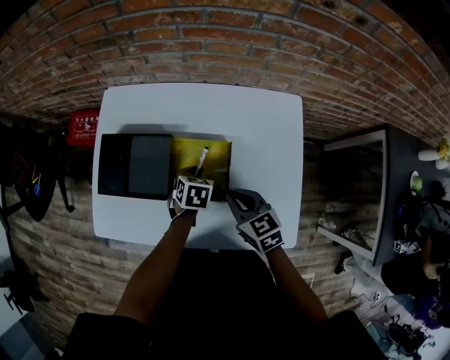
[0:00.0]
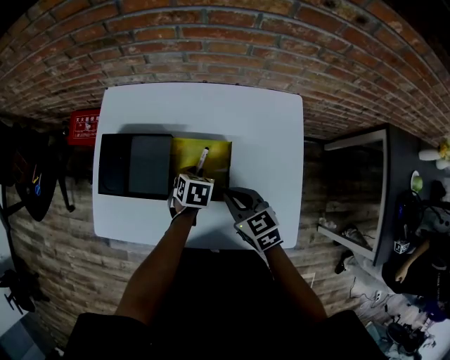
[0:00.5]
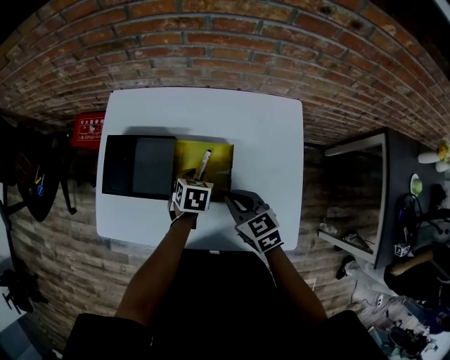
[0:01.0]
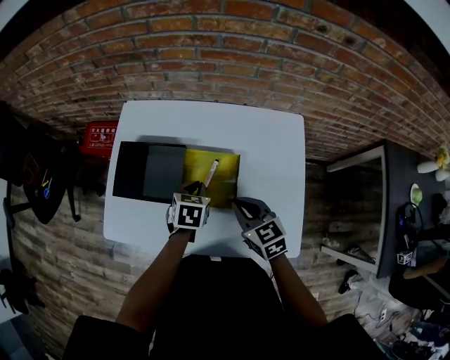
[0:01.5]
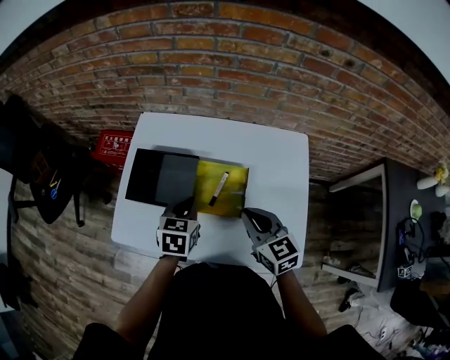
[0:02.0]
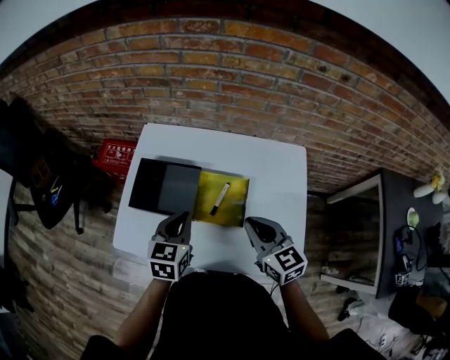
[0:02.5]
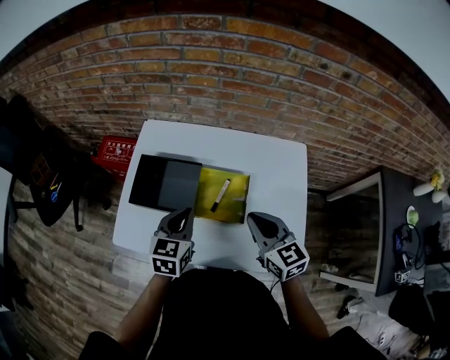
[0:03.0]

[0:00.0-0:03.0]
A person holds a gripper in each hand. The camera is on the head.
0:00.0 to 0:01.5: The left gripper moves upward, approximately 5 cm.
0:01.5 to 0:03.0: The left gripper heads upward and to the left, covering some 15 cm, and changes its angle by approximately 20 degrees; the right gripper is displaced upward by about 10 cm.

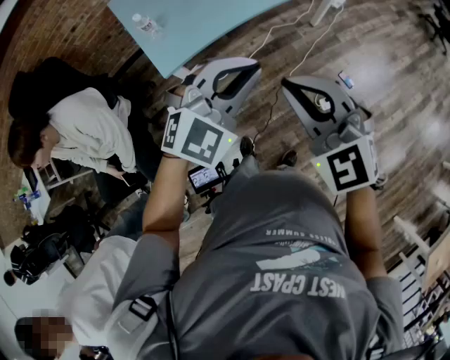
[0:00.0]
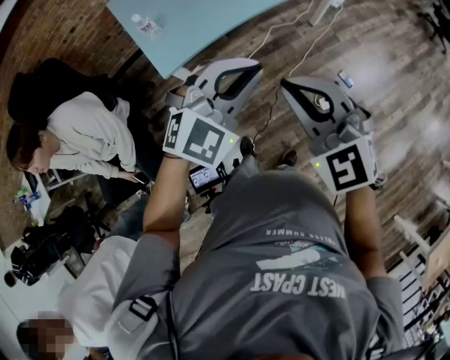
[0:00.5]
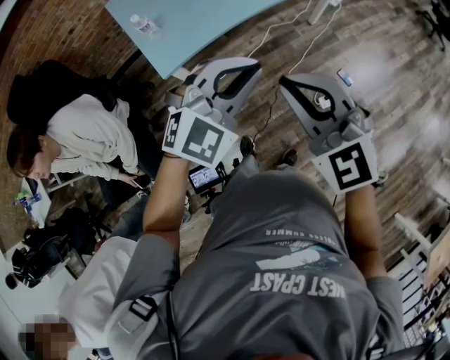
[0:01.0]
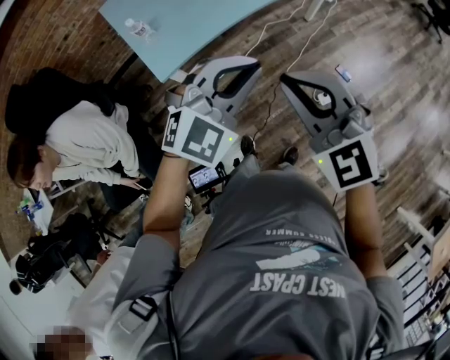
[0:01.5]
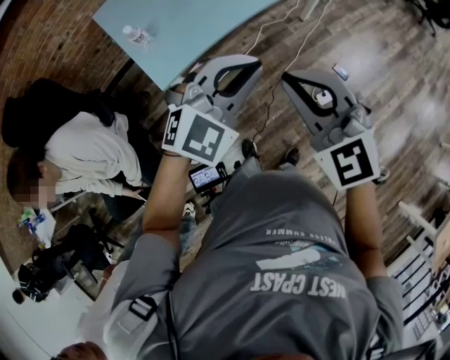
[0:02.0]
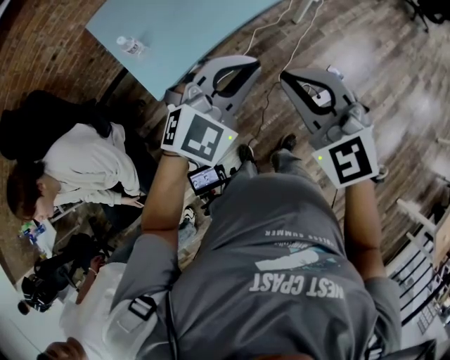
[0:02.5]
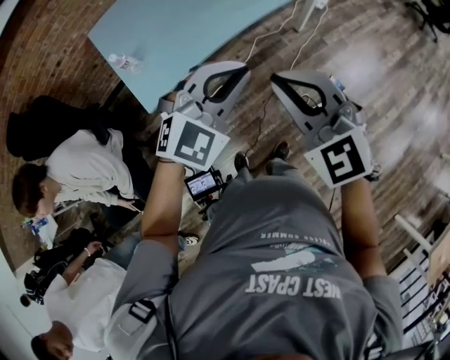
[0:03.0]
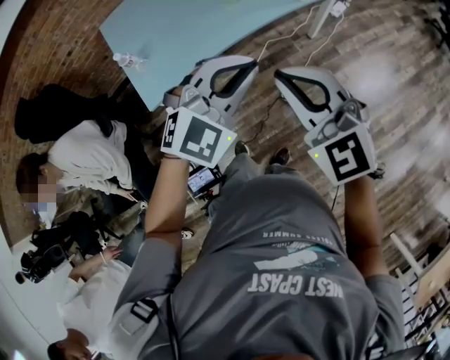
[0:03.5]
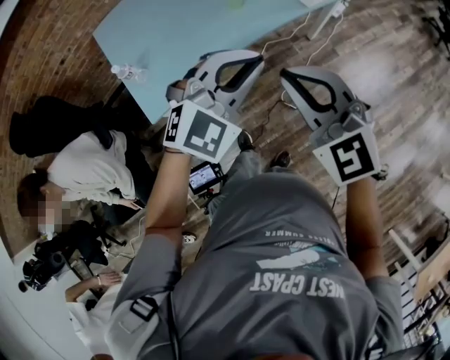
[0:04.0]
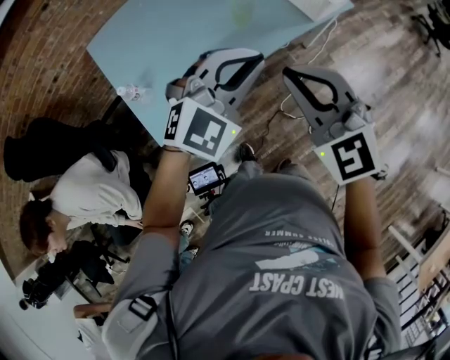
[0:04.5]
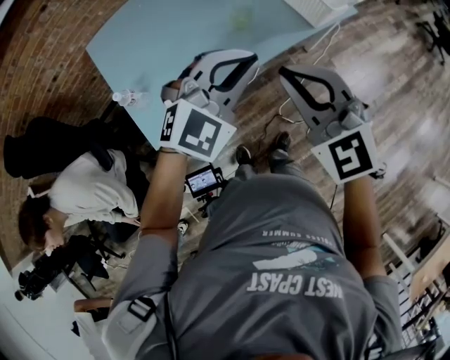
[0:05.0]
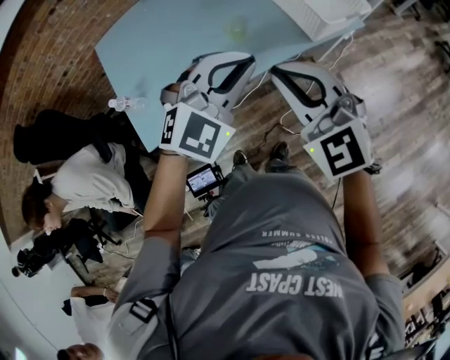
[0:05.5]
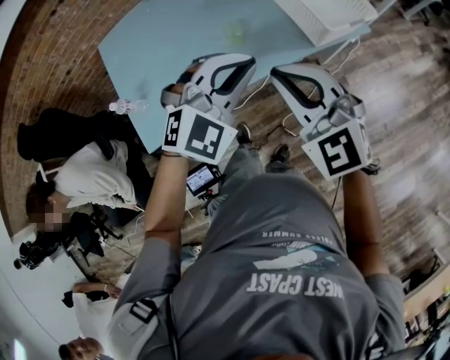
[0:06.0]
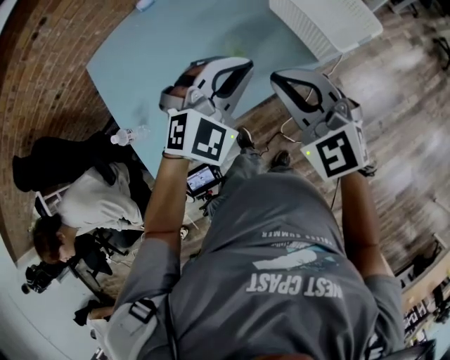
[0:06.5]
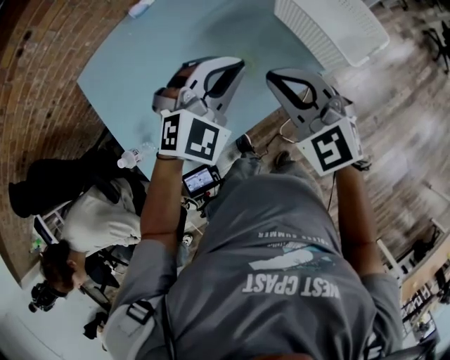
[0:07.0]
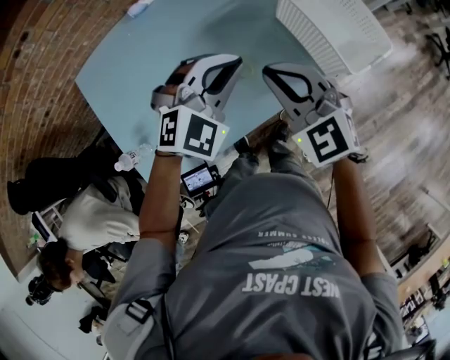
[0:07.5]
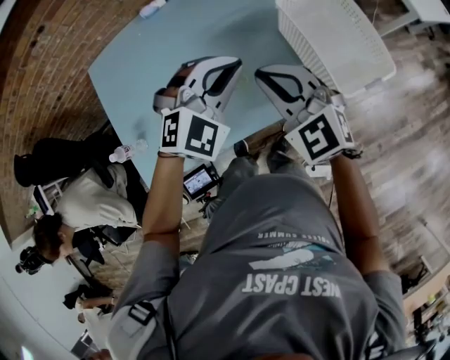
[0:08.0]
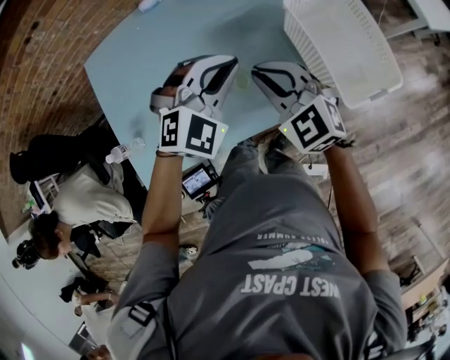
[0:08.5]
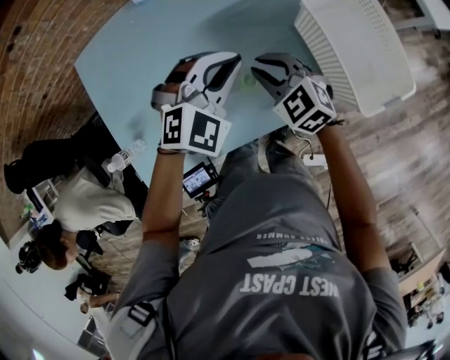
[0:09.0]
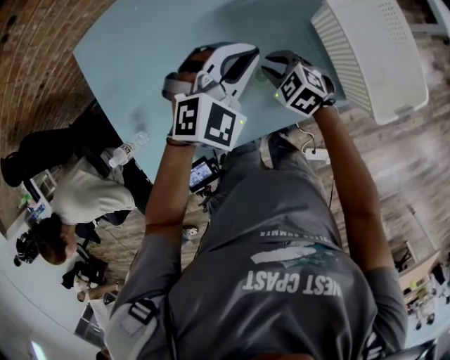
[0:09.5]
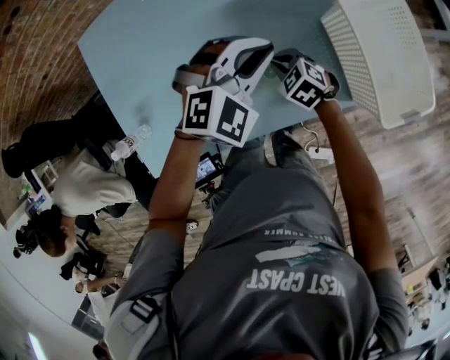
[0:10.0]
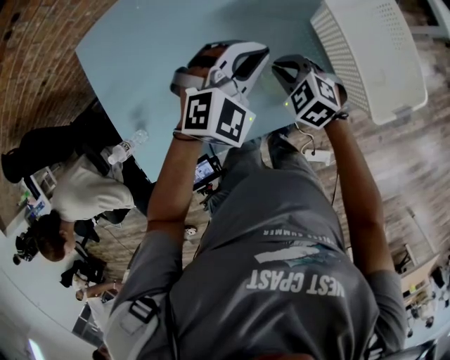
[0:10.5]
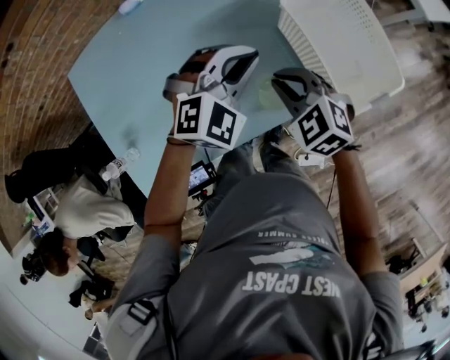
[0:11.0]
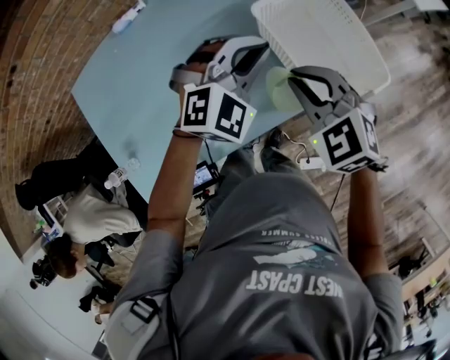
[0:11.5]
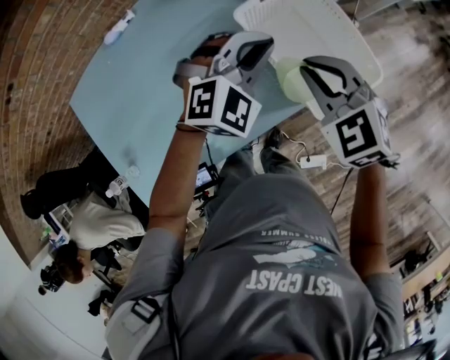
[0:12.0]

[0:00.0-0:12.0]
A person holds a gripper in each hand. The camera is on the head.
0:00.0 to 0:02.0: The grippers stay close to where they were, moving slightly.
0:02.0 to 0:04.0: The two grippers go some 20 cm forward and to the right.
0:04.0 to 0:06.0: The two grippers go about 20 cm forward.
0:06.0 to 0:08.0: Both grippers move forward, roughly 20 cm.
0:08.0 to 0:10.0: The right gripper heads downward, covering approximately 30 cm, and tilts its fingers roughly 40 degrees downward, while the left gripper is displaced downward and forward by approximately 10 cm.
0:10.0 to 0:12.0: The right gripper shifts approximately 35 cm upward and to the right, and turns by approximately 30 degrees. Meanwhile the left gripper is displaced to the right by some 20 cm.

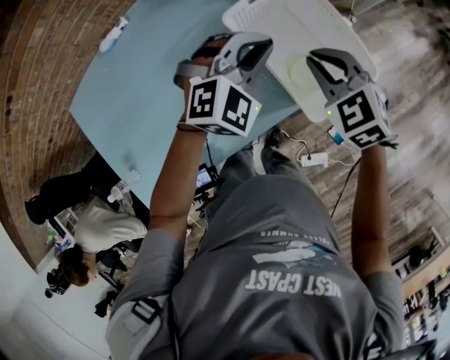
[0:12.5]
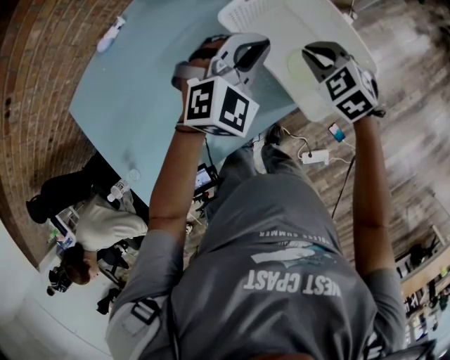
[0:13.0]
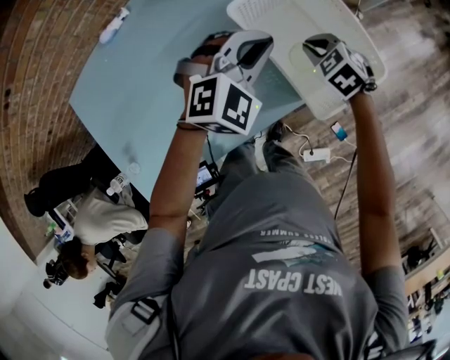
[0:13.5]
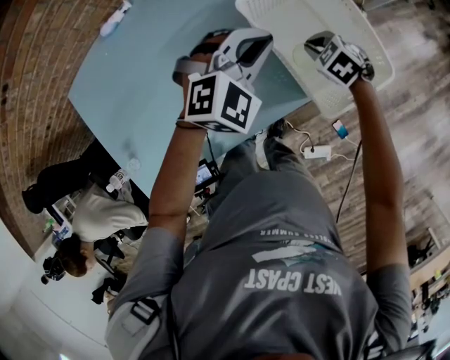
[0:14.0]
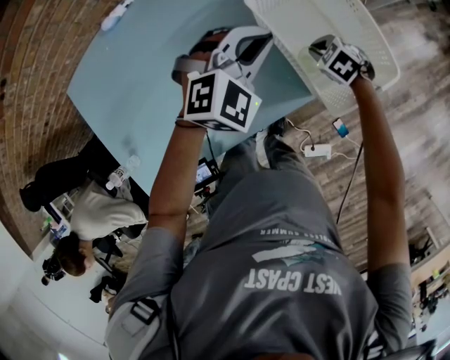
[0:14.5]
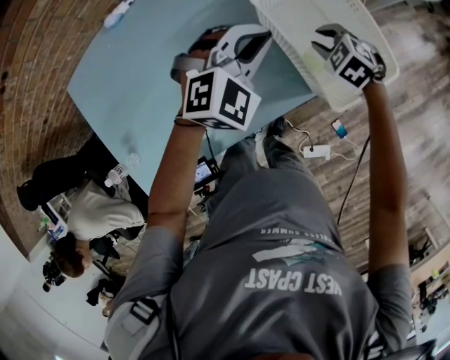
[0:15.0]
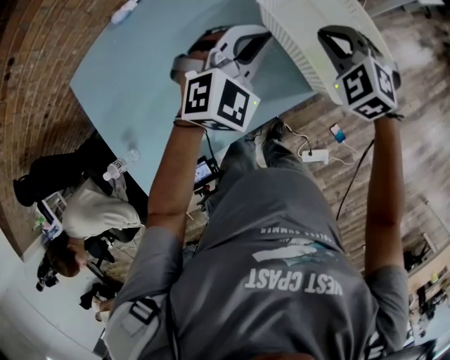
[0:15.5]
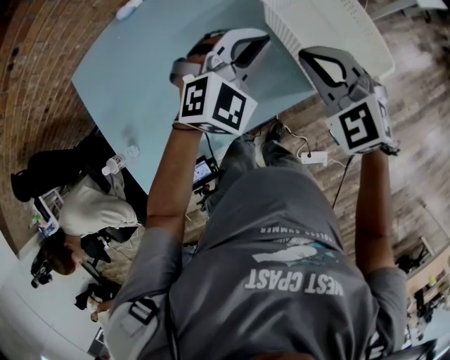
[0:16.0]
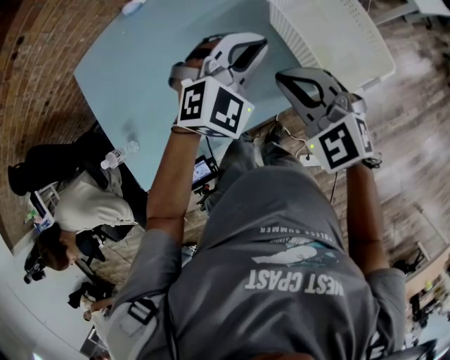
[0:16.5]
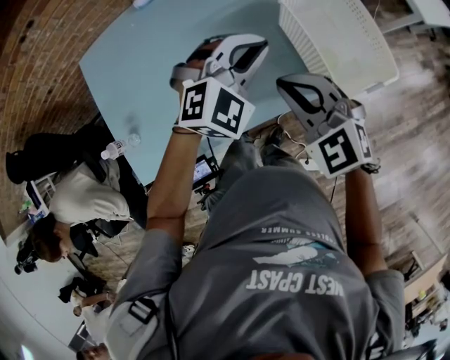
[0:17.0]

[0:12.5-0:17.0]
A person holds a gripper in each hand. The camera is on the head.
0:12.5 to 0:14.5: The left gripper moves to the left, approximately 5 cm. Meanwhile the right gripper is displaced downward by roughly 20 cm, and swivels some 30 degrees.
0:14.5 to 0:17.0: The left gripper is displaced backward, to the left and upward by approximately 10 cm, while the right gripper heads upward, to the left and backward, covering roughly 35 cm, and points its fingers roughly 40 degrees further upward.

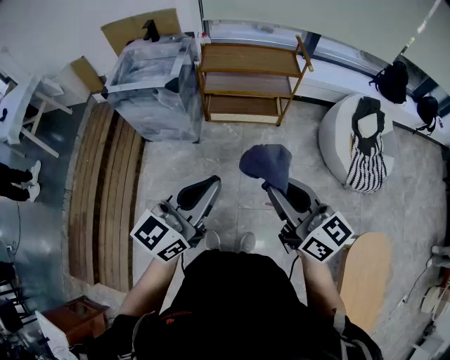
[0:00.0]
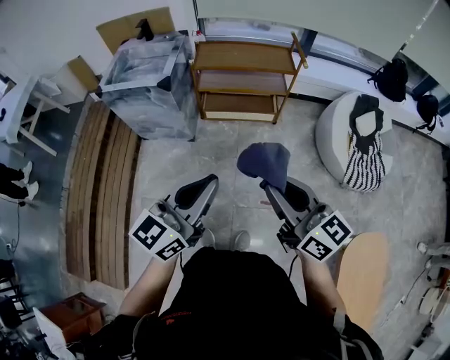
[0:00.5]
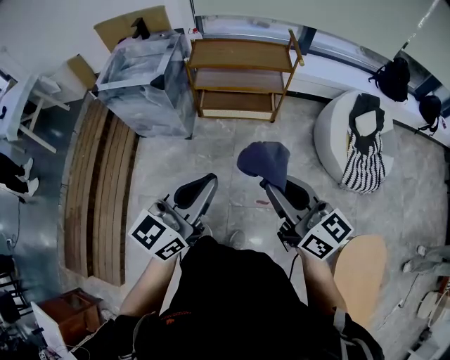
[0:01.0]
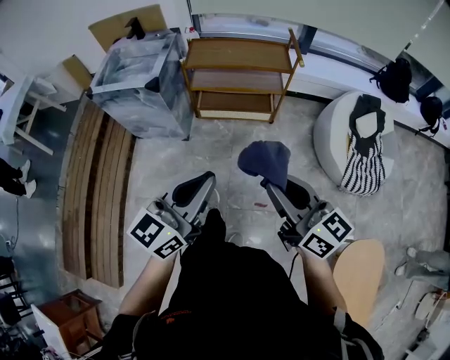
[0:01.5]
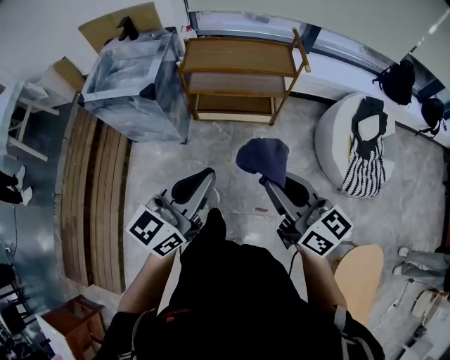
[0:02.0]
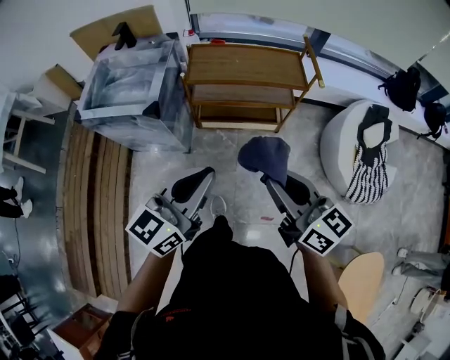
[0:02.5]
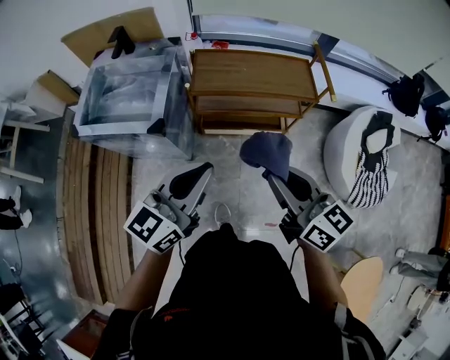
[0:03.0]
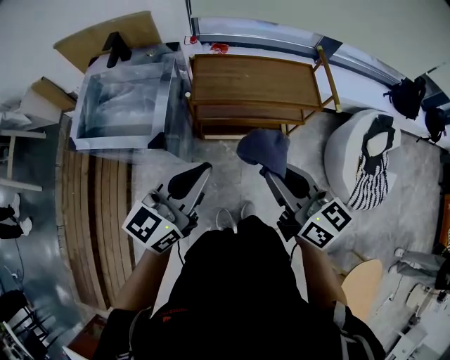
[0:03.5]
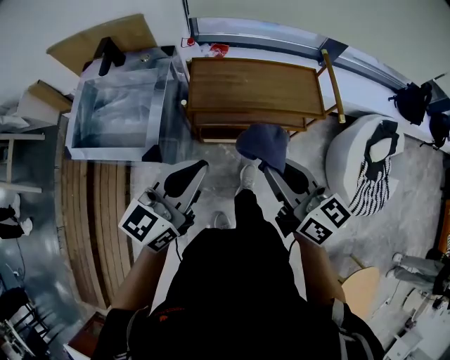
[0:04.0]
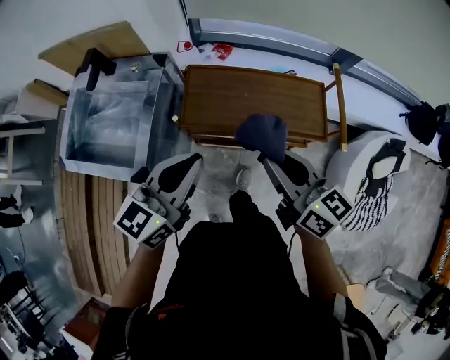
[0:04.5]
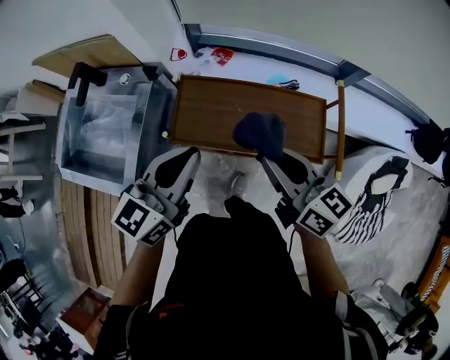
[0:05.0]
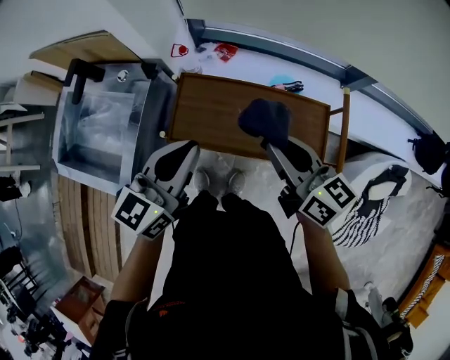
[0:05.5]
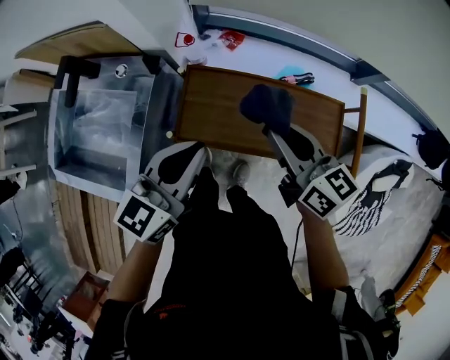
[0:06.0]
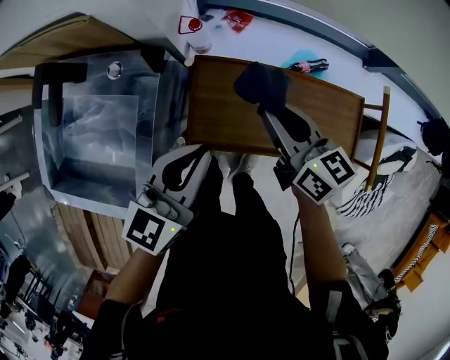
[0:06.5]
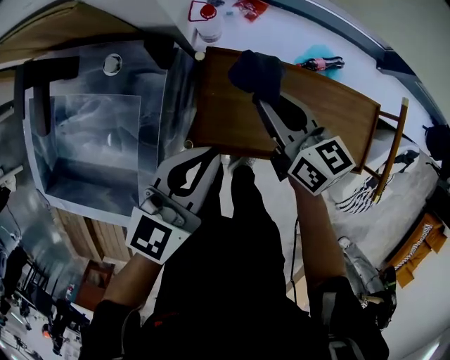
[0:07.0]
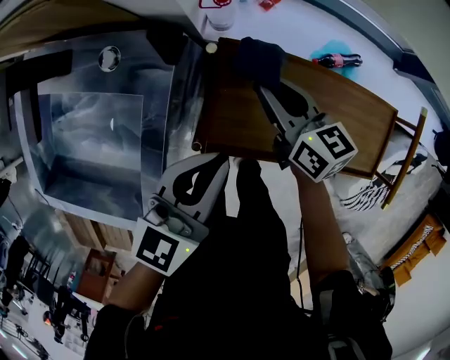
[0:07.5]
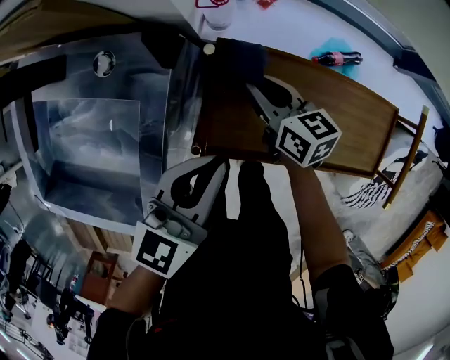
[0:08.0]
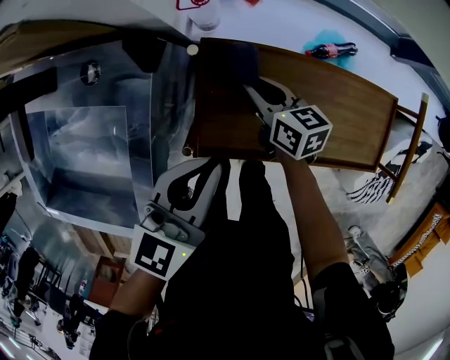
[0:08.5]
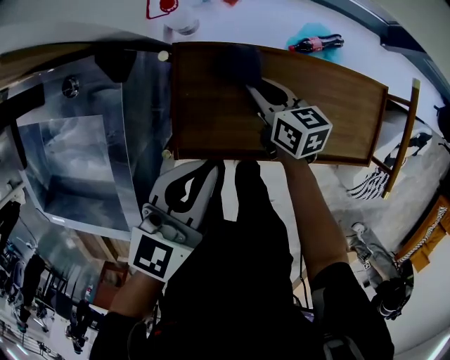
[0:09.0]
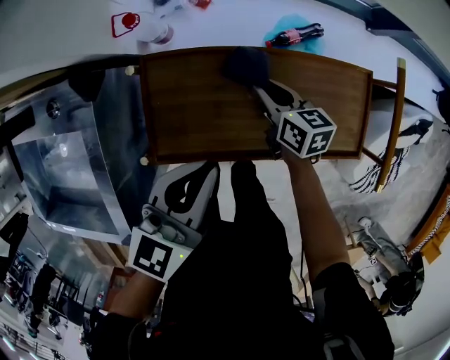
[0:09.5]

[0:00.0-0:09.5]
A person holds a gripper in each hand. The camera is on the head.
0:00.0 to 0:02.0: The two grippers go roughly 15 cm forward and to the right.
0:02.0 to 0:04.0: The grippers both shift forward by approximately 40 cm.
0:04.0 to 0:05.5: The left gripper travels forward by approximately 25 cm; the right gripper shifts about 35 cm forward and to the right.
0:05.5 to 0:07.5: The left gripper travels downward, to the left and forward by roughly 25 cm; the right gripper travels downward, to the left and forward by approximately 40 cm.
0:07.5 to 0:09.5: The right gripper is displaced to the right and downward by roughly 20 cm; the left gripper moves to the right, approximately 15 cm.
